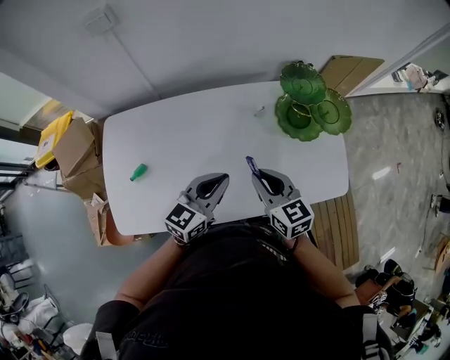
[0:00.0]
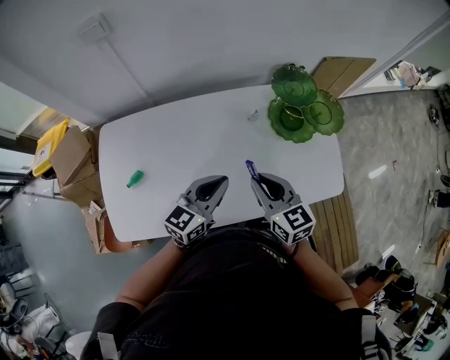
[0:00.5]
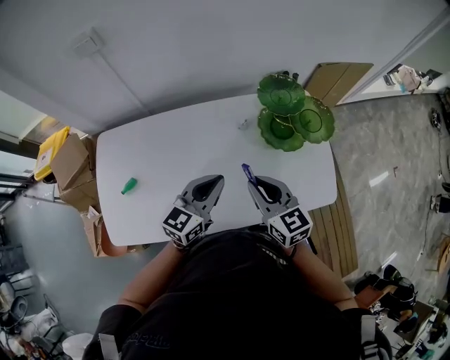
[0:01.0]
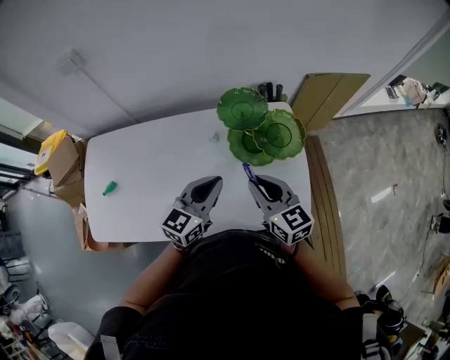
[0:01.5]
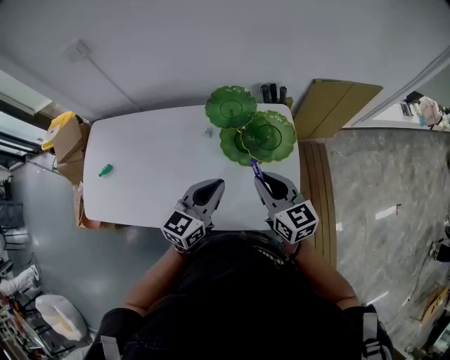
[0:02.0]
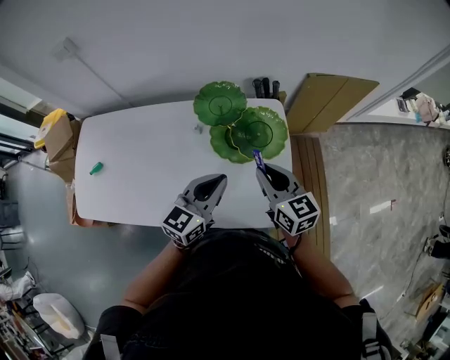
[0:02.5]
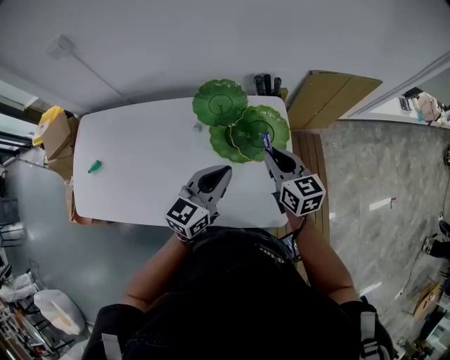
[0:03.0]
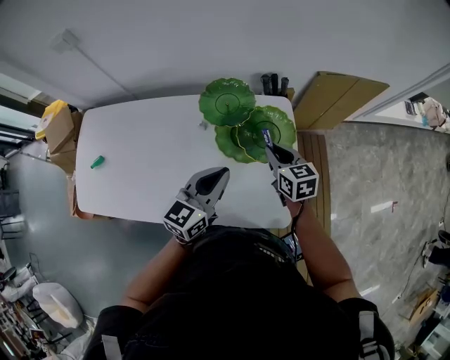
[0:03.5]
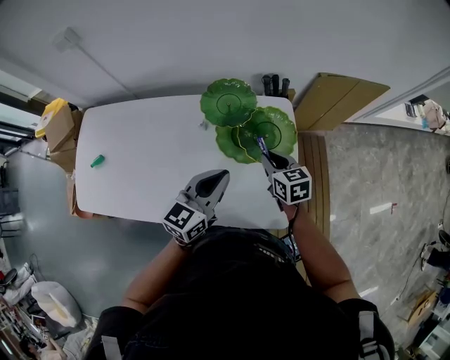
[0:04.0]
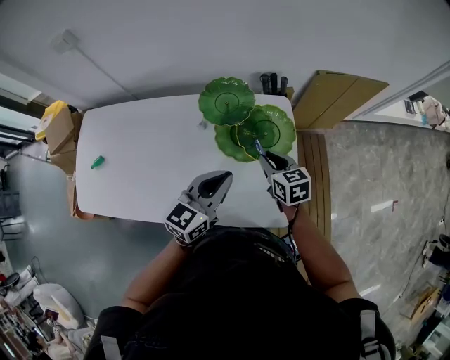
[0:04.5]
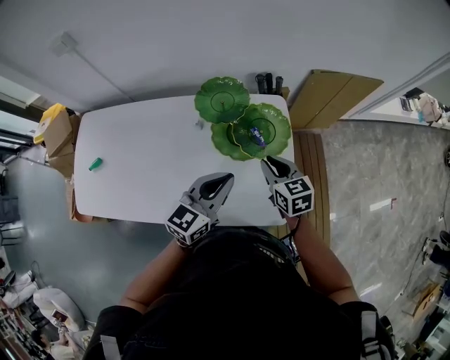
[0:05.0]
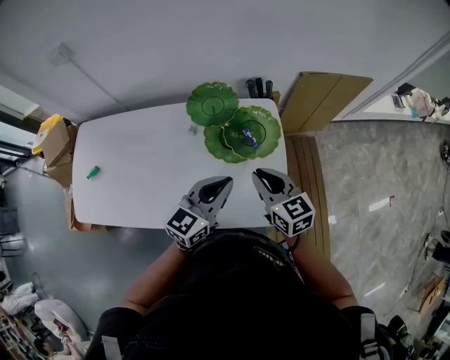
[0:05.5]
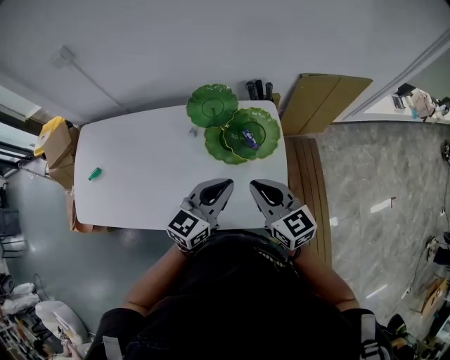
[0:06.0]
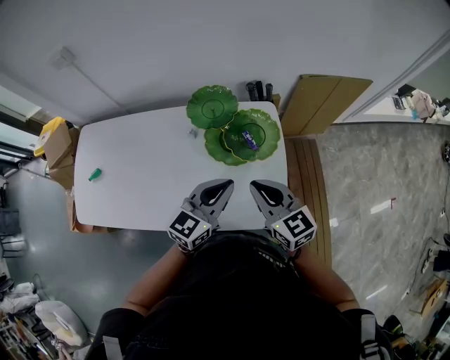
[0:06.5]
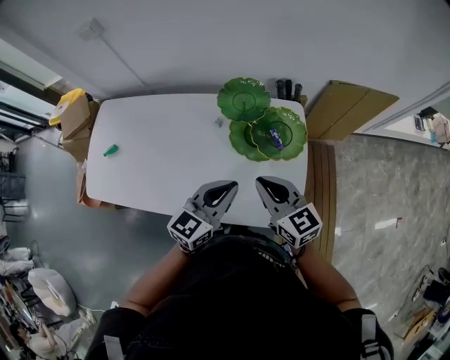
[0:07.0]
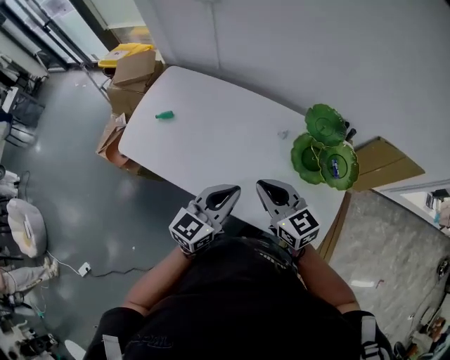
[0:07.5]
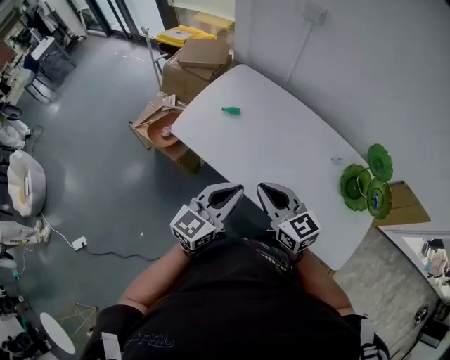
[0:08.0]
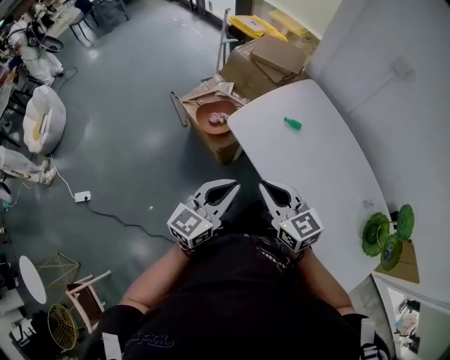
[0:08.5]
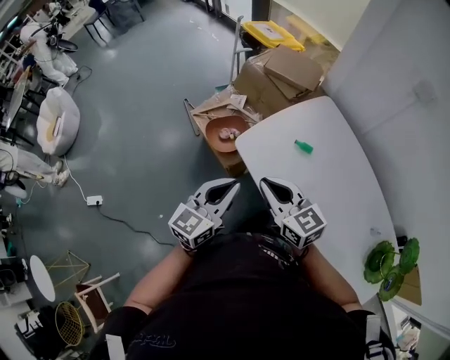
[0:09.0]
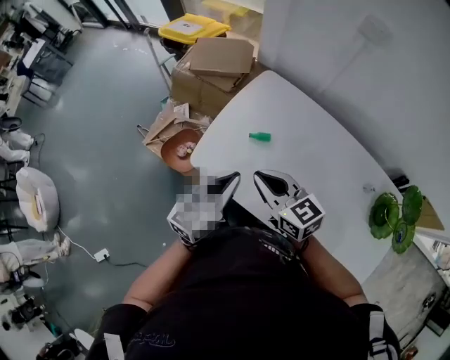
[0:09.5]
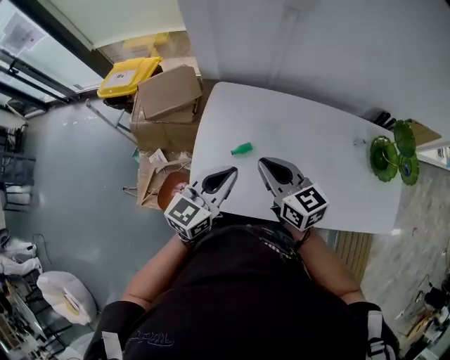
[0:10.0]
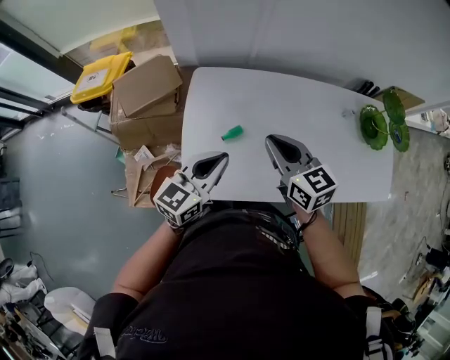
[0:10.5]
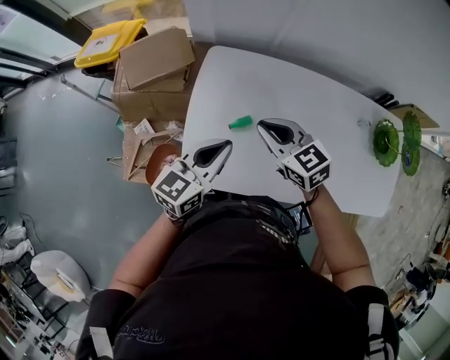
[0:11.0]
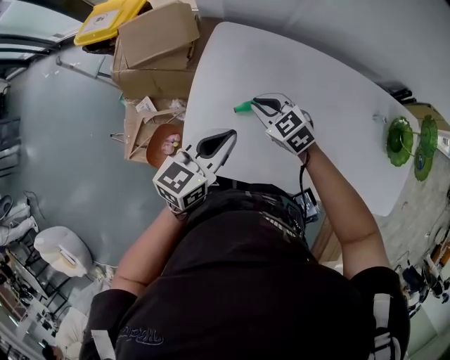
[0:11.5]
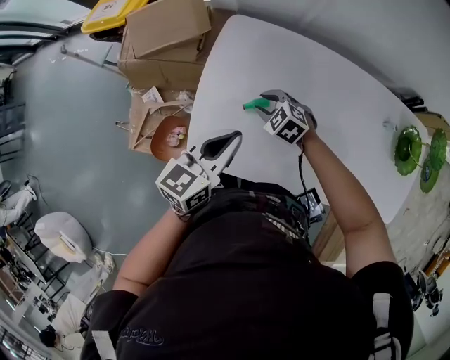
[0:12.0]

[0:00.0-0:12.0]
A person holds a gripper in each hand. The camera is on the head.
0:00.0 to 0:02.0: Both grippers move to the right, approximately 30 cm.
0:02.0 to 0:04.0: The right gripper moves downward and forward, some 15 cm, and swivels some 20 degrees.
0:04.0 to 0:06.0: The right gripper is displaced upward and backward by approximately 20 cm, and changes its angle by some 20 degrees. The left gripper moves to the right, some 5 cm.
0:06.0 to 0:08.0: The two grippers travel together, approximately 50 cm. The right gripper changes its angle by about 40 degrees; the left gripper changes its angle by approximately 40 degrees.
0:08.0 to 0:10.0: The right gripper shifts by approximately 35 cm, and turns by about 30 degrees, while the left gripper shifts by about 35 cm, and rotates some 30 degrees.
0:10.0 to 0:12.0: The left gripper travels downward by some 10 cm. Meanwhile the right gripper is displaced downward by some 30 cm, tips its fingers downward by approximately 40 degrees, and opens its fingers.

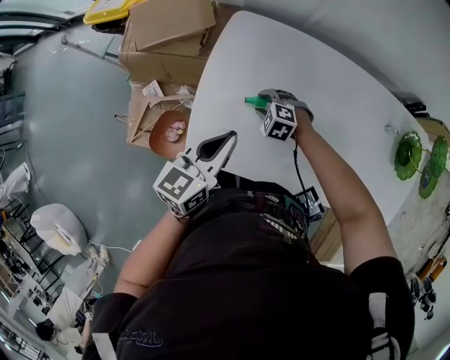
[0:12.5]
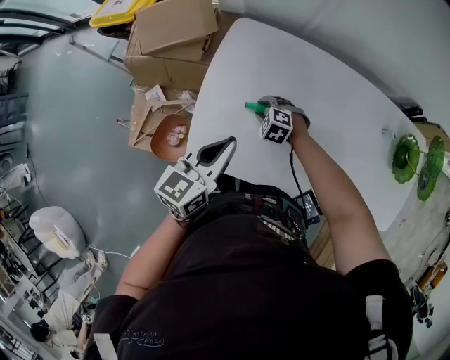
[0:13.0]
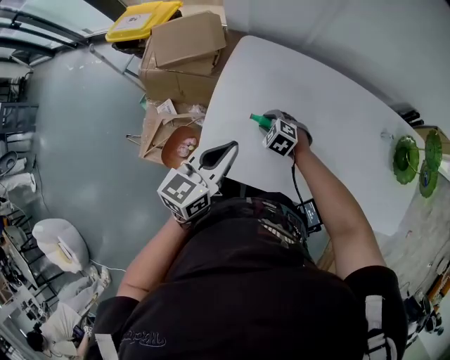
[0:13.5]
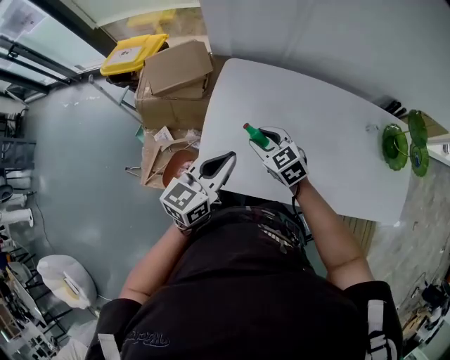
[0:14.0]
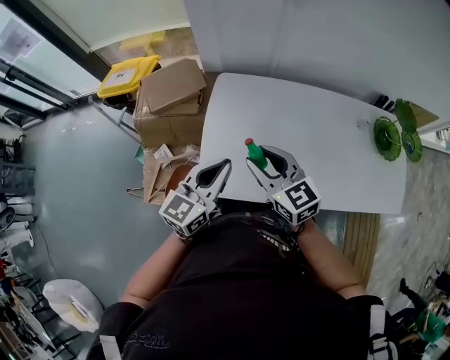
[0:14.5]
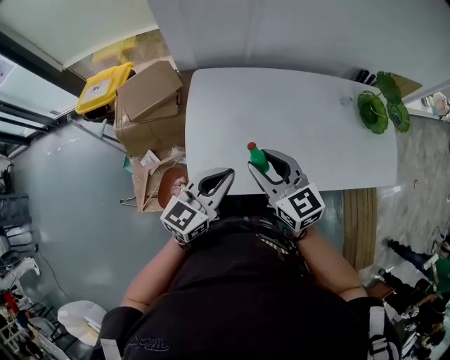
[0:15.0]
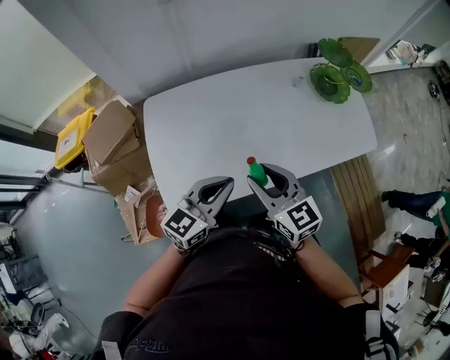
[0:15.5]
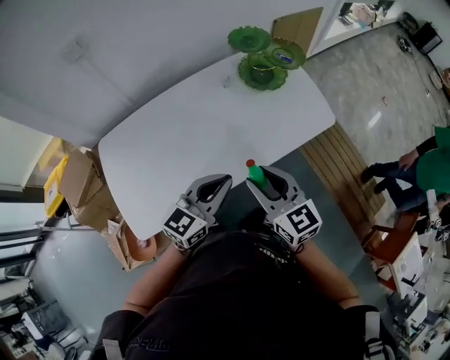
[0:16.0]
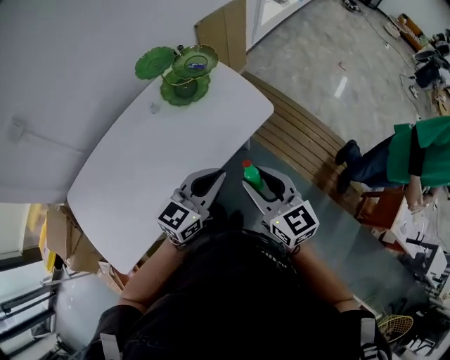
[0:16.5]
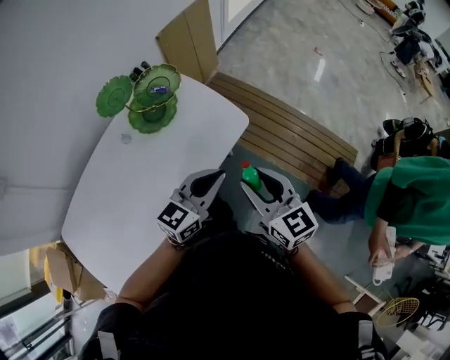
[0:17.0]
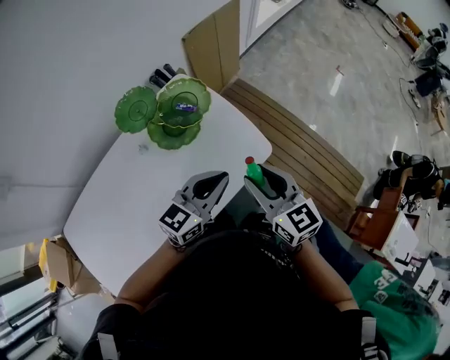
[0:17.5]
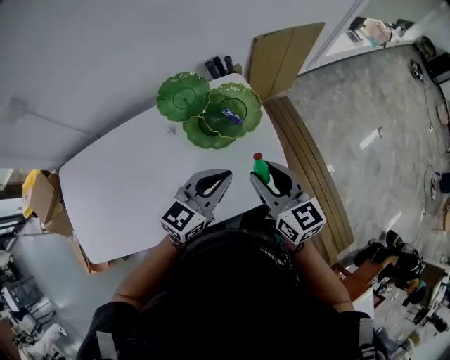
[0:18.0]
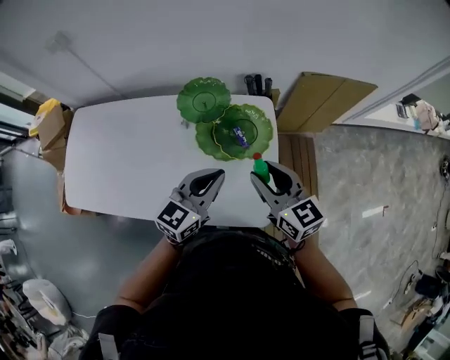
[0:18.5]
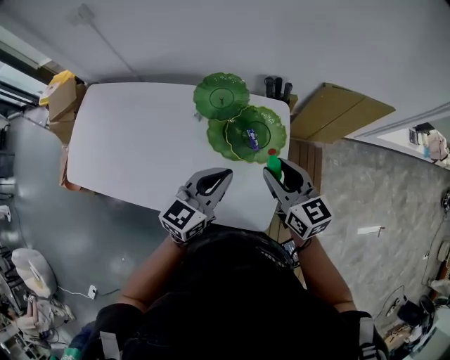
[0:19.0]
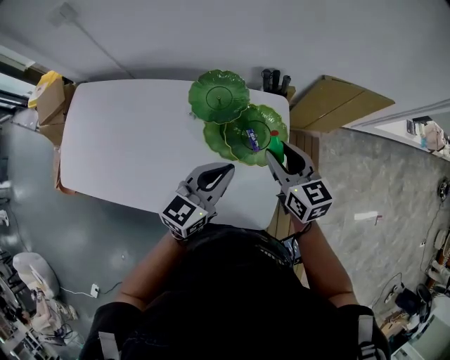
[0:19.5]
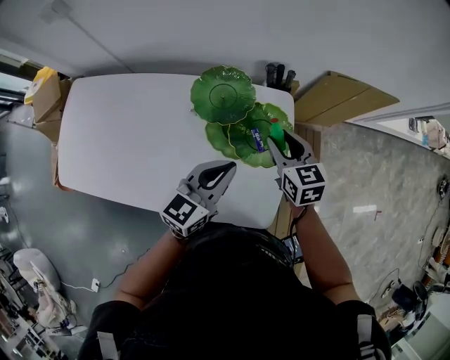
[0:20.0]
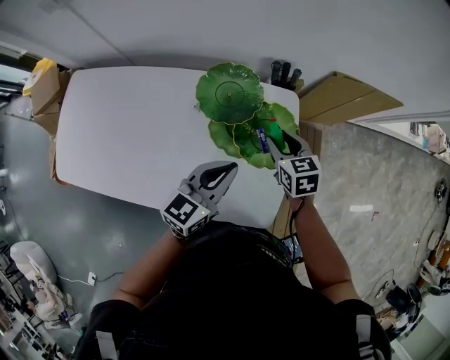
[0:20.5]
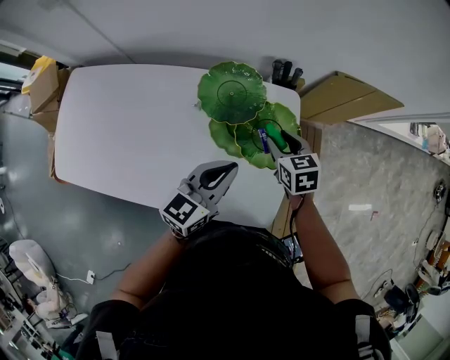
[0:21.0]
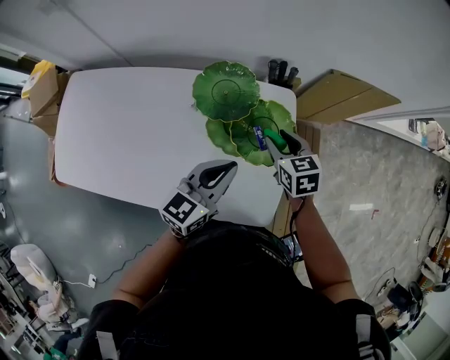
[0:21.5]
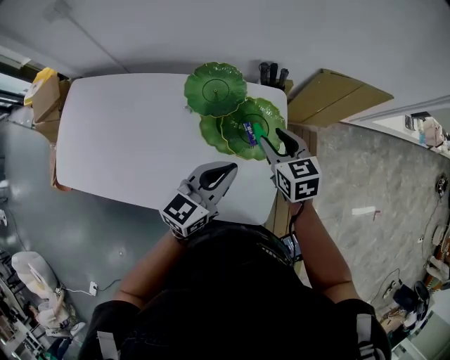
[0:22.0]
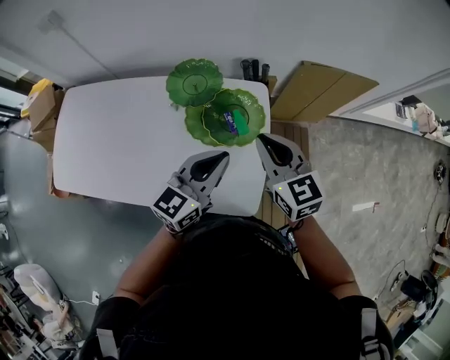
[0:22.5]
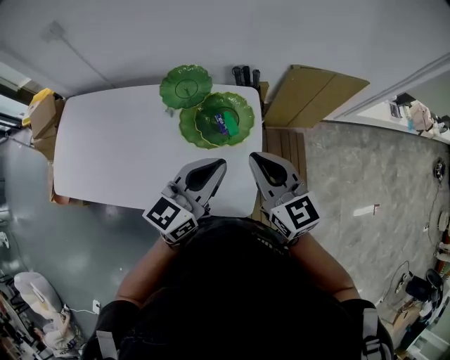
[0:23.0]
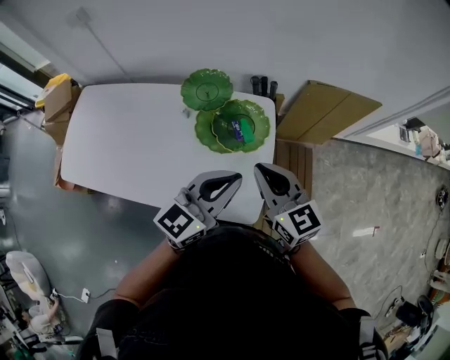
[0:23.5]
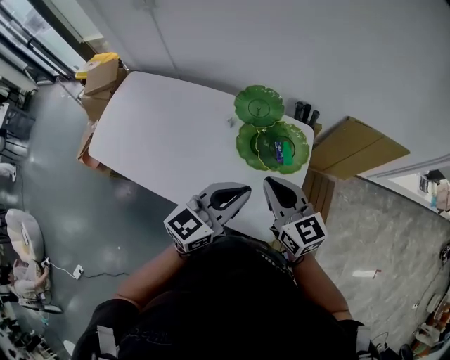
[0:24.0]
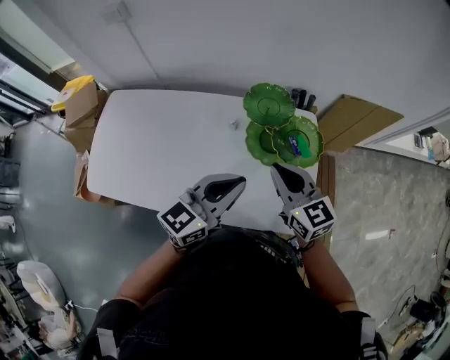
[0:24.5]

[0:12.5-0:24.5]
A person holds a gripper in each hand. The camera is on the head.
0:12.5 to 0:14.5: The left gripper goes approximately 10 cm upward and backward, and rotates roughly 20 degrees; the right gripper goes approximately 35 cm upward, and points its fingers approximately 50 degrees further upward.
0:14.5 to 0:16.5: Both grippers are carried about 60 cm. The right gripper swivels about 60 degrees; the left gripper rotates about 60 degrees.
0:16.5 to 0:18.5: The left gripper ends up roughly 35 cm from where it was, and changes its angle by about 50 degrees, while the right gripper ends up about 40 cm from where it was, and swivels some 50 degrees.
0:18.5 to 0:20.5: The right gripper shifts approximately 20 cm forward and downward, and swivels roughly 30 degrees. Meanwhile the left gripper goes about 5 cm forward.
0:20.5 to 0:22.5: The right gripper heads upward and backward, covering approximately 20 cm, swivels some 20 degrees, and closes up; the left gripper is displaced upward and to the right by about 10 cm.
0:22.5 to 0:24.5: The two grippers go approximately 15 cm to the left.

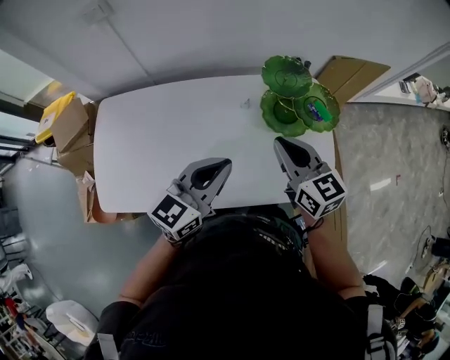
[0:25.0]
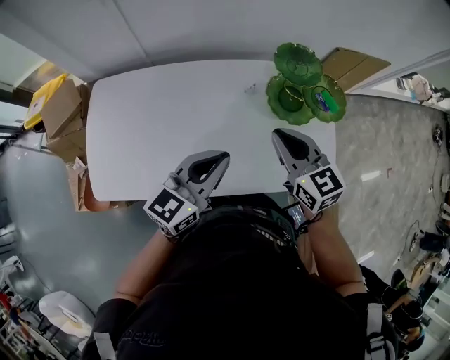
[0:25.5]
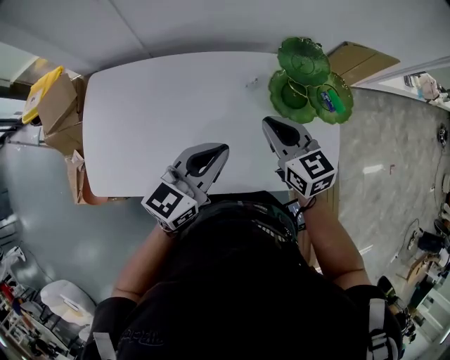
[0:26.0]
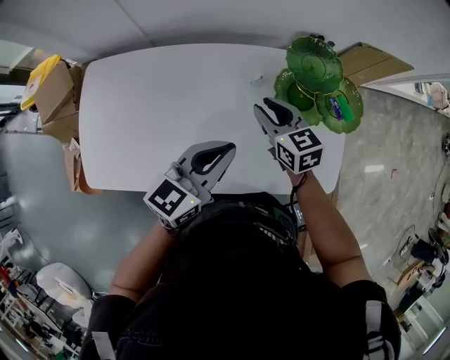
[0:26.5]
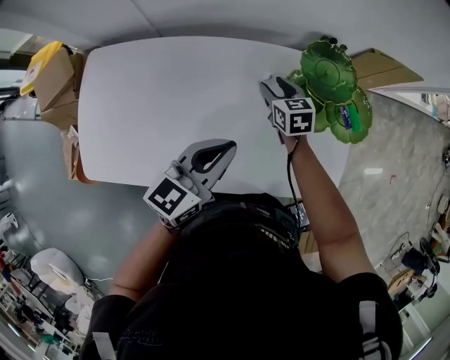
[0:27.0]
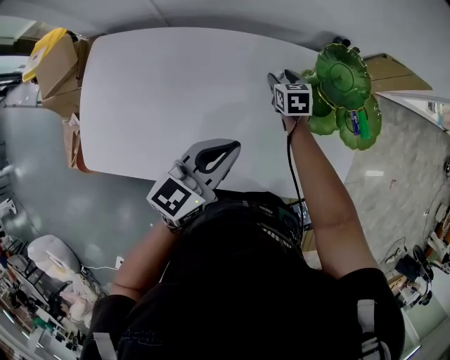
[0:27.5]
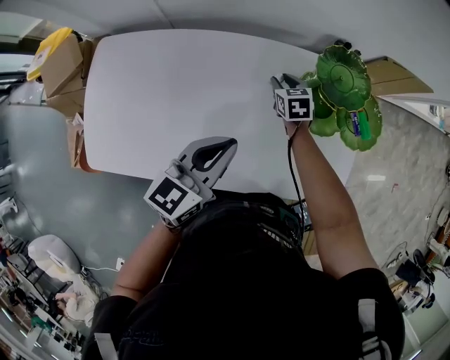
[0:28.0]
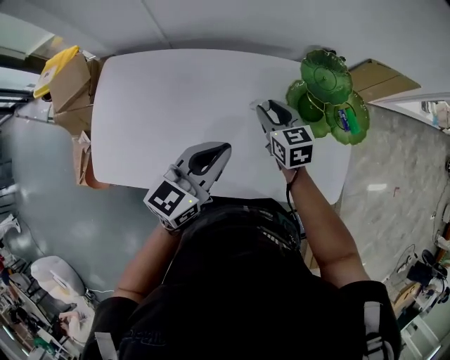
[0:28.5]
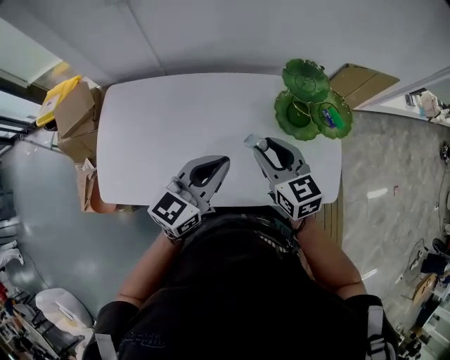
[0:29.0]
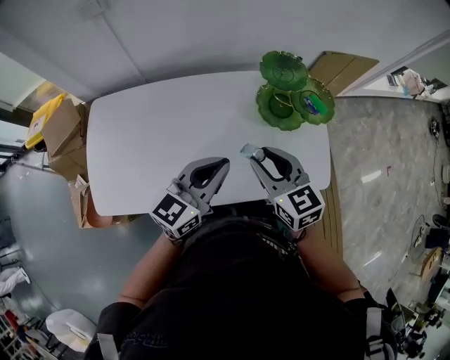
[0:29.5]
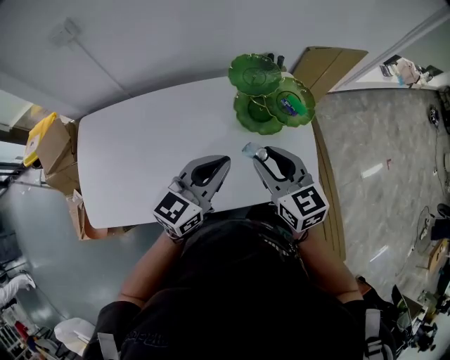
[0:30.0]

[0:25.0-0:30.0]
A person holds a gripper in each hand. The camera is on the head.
0:25.0 to 0:27.5: The left gripper travels downward and forward by approximately 10 cm. The right gripper is displaced downward and forward by roughly 40 cm, angles its fingers downward, by roughly 30 degrees, and opens up.
0:27.5 to 0:30.0: The left gripper shifts approximately 15 cm to the right and upward, and turns by about 20 degrees. The right gripper shifts some 40 cm upward and backward, and turns by roughly 30 degrees.
